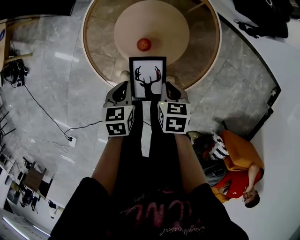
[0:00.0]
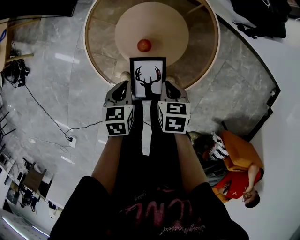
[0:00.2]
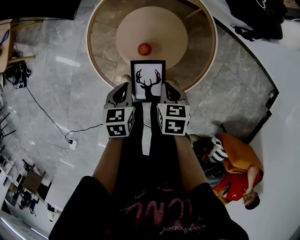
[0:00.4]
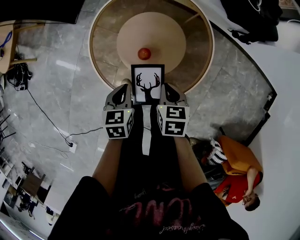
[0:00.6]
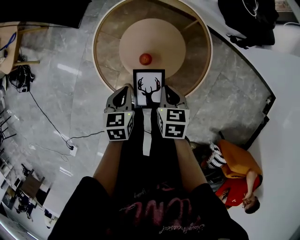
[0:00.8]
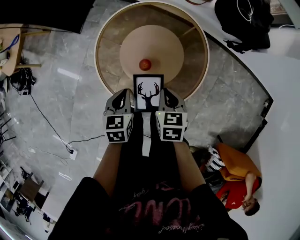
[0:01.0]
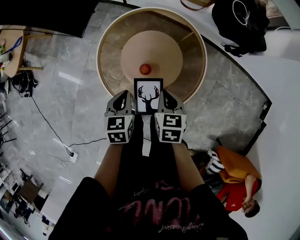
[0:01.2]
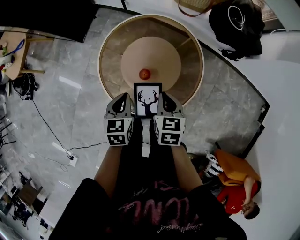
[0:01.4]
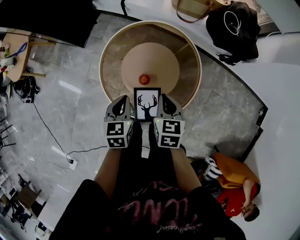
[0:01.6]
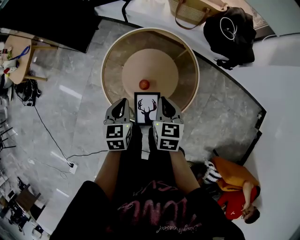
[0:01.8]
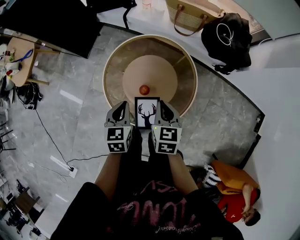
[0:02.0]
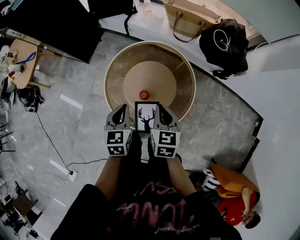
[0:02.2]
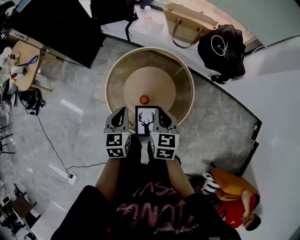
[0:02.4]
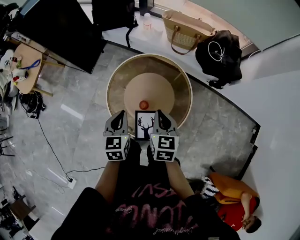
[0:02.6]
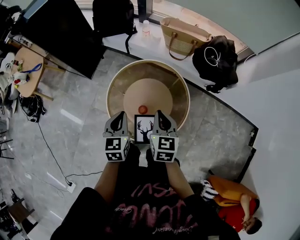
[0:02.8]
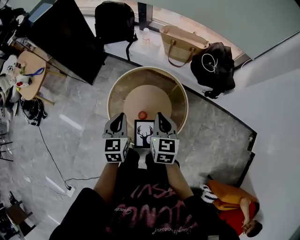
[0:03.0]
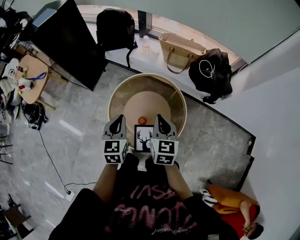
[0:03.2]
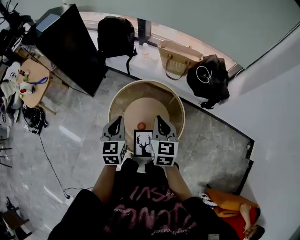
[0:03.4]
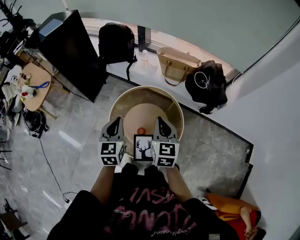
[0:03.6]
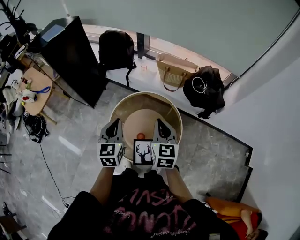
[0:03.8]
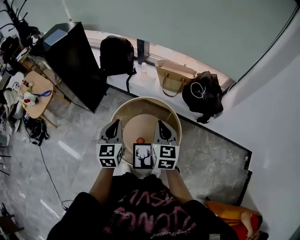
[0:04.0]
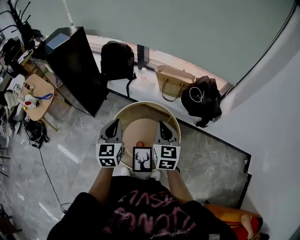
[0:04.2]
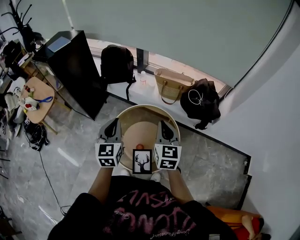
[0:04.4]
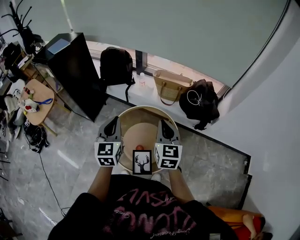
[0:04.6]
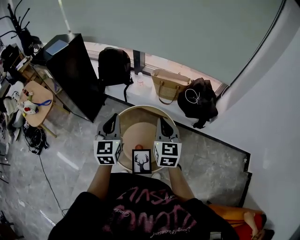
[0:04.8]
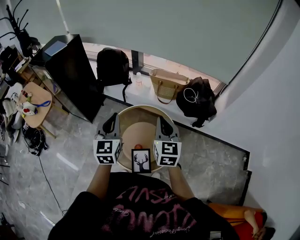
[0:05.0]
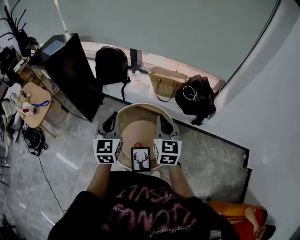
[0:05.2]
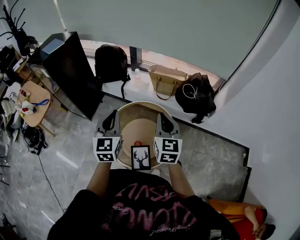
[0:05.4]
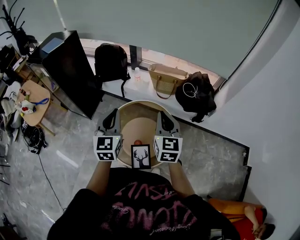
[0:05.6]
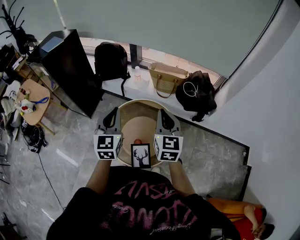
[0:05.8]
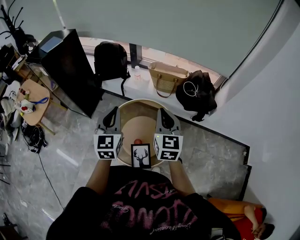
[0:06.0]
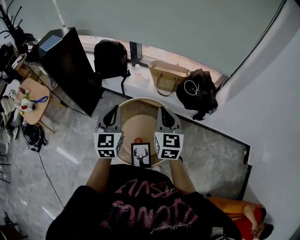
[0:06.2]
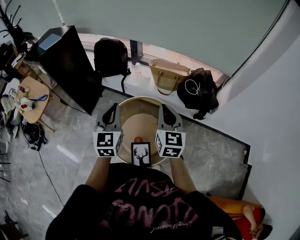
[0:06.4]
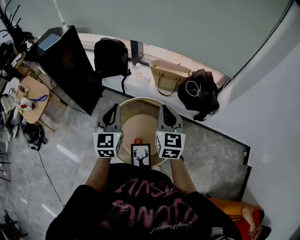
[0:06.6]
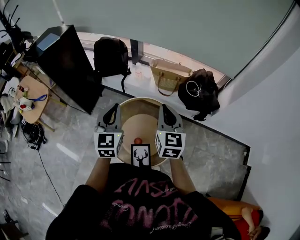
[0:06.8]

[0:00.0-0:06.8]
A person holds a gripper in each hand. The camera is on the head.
0:00.0 to 0:01.4: Both grippers travel together upward and forward, roughly 15 cm.
0:01.4 to 0:02.8: Both grippers travel together upward, some 15 cm.
0:02.8 to 0:04.0: The two grippers go approximately 15 cm upward.
0:04.0 to 0:05.4: The two grippers go roughly 5 cm upward.
0:05.4 to 0:06.8: The grippers both shift forward by roughly 5 cm.

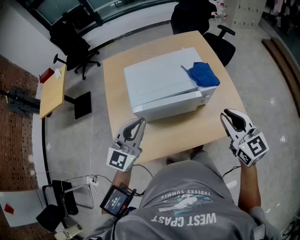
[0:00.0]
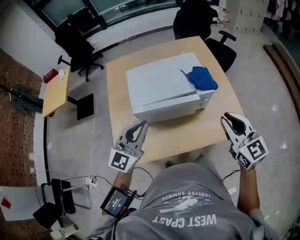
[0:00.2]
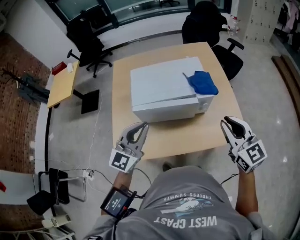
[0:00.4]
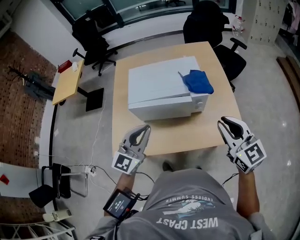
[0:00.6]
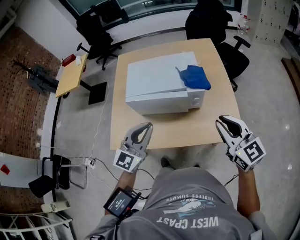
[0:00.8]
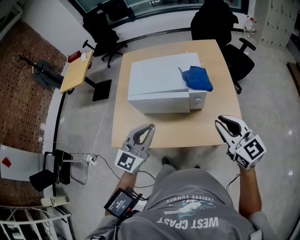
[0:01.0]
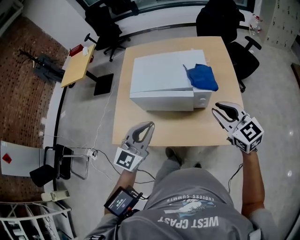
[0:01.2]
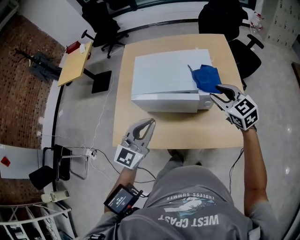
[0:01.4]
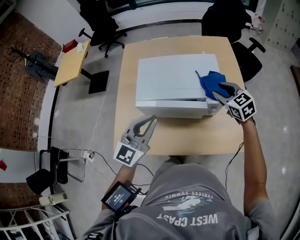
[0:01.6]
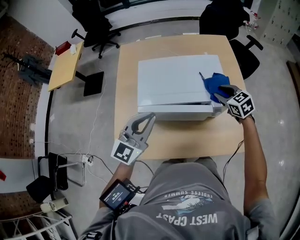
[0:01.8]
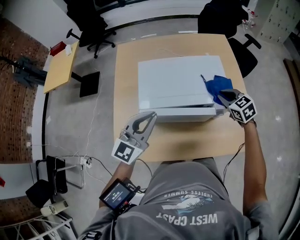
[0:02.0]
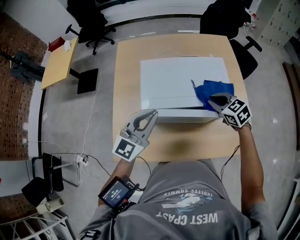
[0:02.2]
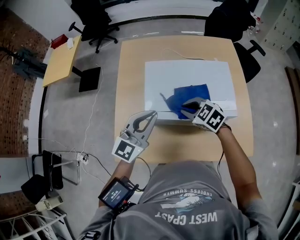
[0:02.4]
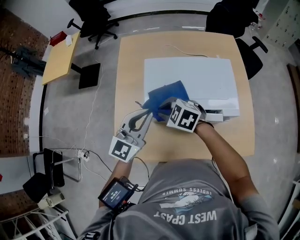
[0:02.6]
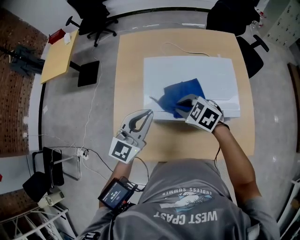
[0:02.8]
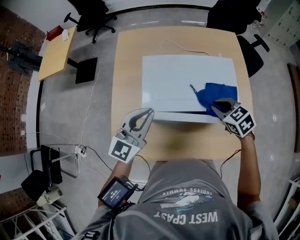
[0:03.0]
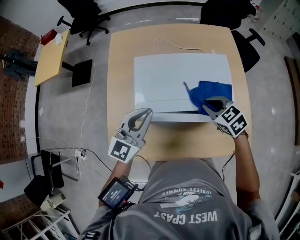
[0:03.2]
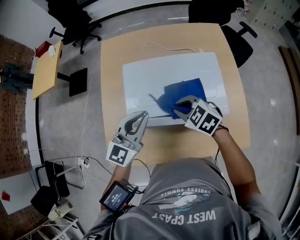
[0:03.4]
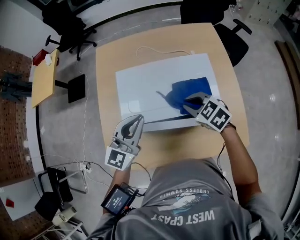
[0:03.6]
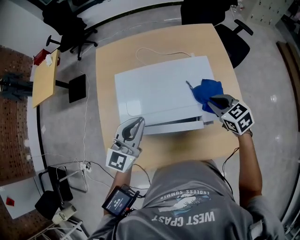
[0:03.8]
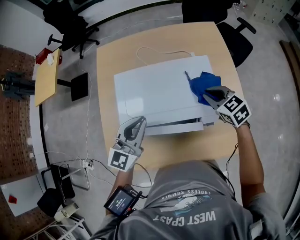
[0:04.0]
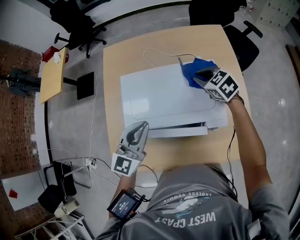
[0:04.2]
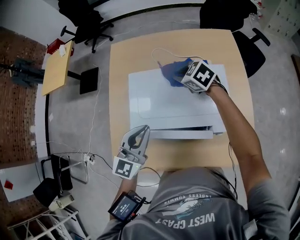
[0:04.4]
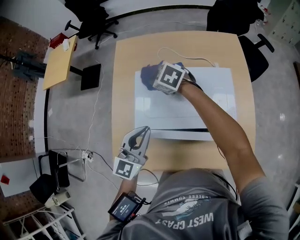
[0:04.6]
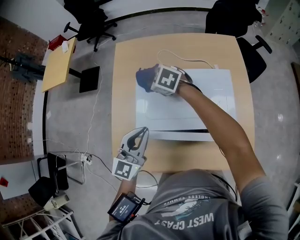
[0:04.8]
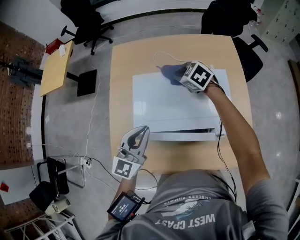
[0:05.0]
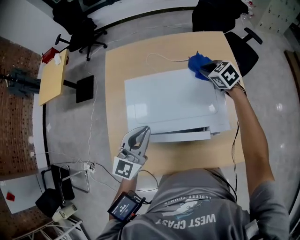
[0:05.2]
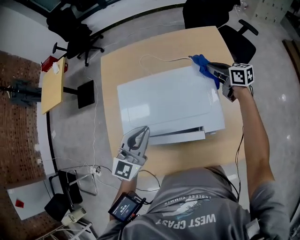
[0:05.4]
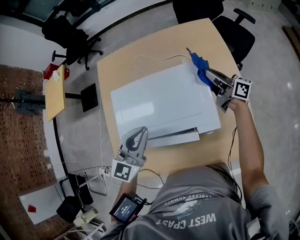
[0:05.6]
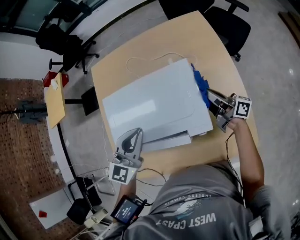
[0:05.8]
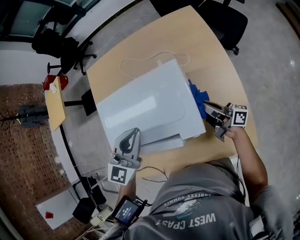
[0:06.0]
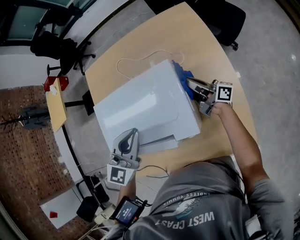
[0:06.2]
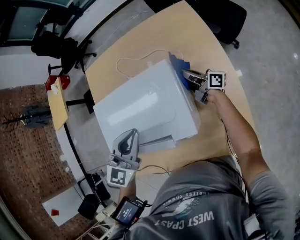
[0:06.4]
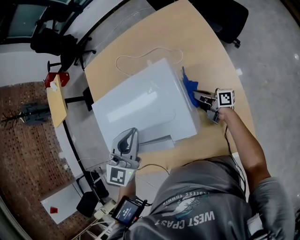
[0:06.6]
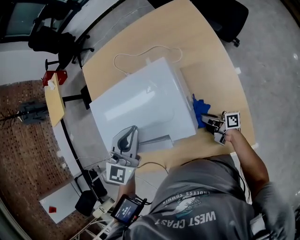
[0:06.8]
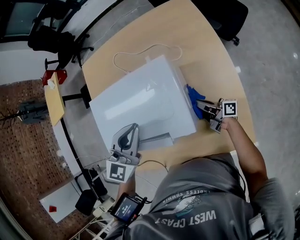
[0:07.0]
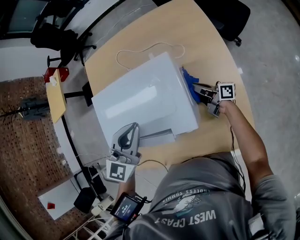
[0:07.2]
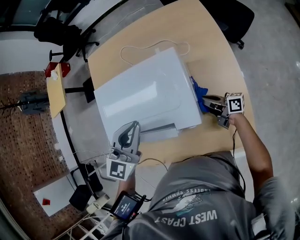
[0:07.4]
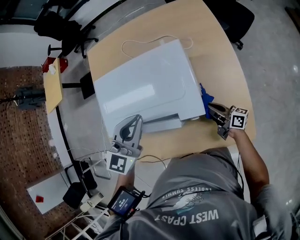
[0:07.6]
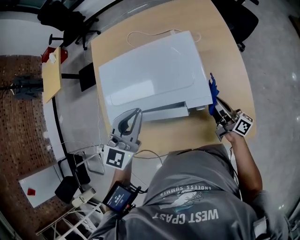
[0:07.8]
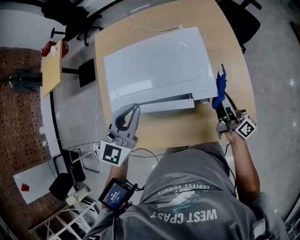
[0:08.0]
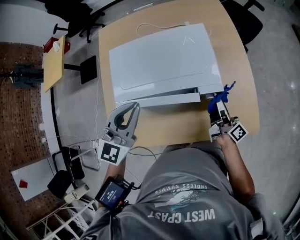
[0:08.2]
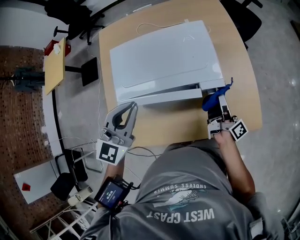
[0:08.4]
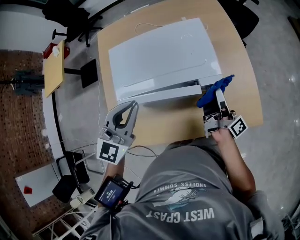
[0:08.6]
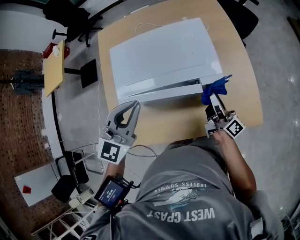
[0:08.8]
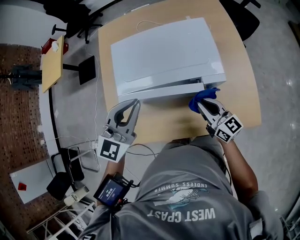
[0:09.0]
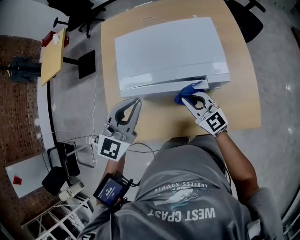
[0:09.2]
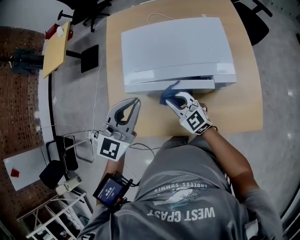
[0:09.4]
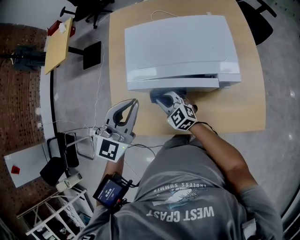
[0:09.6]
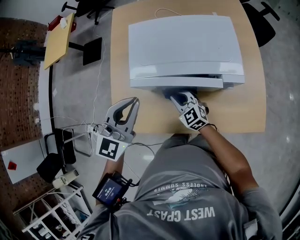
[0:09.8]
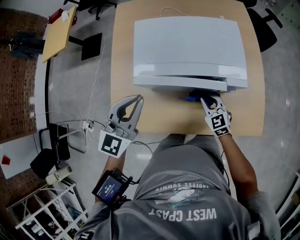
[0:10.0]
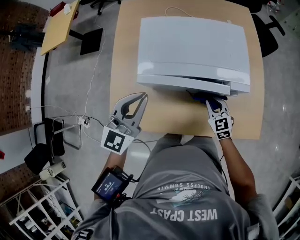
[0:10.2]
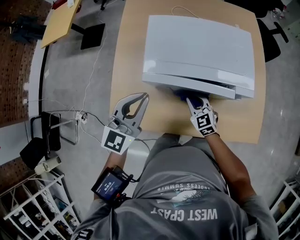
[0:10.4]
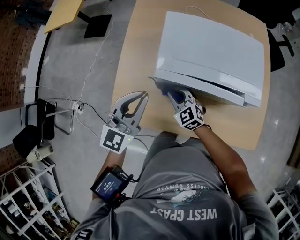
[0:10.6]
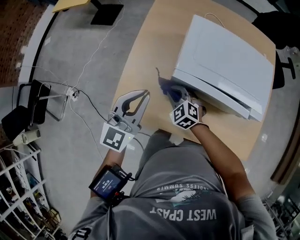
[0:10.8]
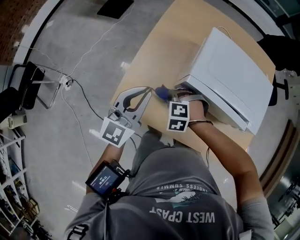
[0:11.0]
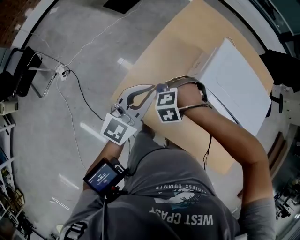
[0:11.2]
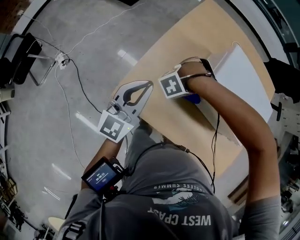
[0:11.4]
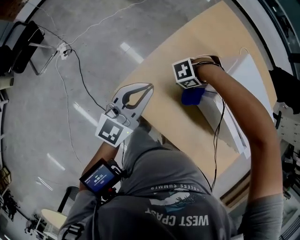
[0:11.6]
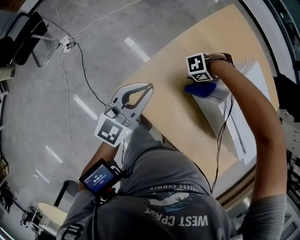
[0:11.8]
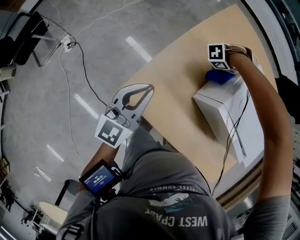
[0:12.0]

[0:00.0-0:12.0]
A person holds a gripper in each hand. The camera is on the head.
0:00.0 to 0:01.6: The left gripper goes about 5 cm to the right, while the right gripper shifts roughly 25 cm forward and downward, and changes its angle by about 30 degrees.
0:01.6 to 0:03.0: The left gripper travels forward and to the left by approximately 15 cm; the right gripper goes some 5 cm downward, travels to the left and back again, about 35 cm each way, and closes its fingers.
0:03.0 to 0:04.4: The right gripper goes left and right, roughly 20 cm each way, reversing 2 times. Meanwhile the left gripper moves to the right, approximately 5 cm.
0:04.4 to 0:06.0: The right gripper shifts roughly 30 cm to the right and backward, and tilts its fingers roughly 60 degrees upward, while the left gripper moves to the right, about 15 cm.
0:06.0 to 0:07.6: The right gripper swings forward and backward, approximately 25 cm each way, with 3 reversals.
0:07.6 to 0:09.0: The right gripper goes some 20 cm to the left, upward and backward, and rotates about 40 degrees. Meanwhile the left gripper moves backward and to the left, about 15 cm.
0:09.0 to 0:10.4: The right gripper moves left and right over some 25 cm, changing direction 2 times, and points its fingers some 30 degrees further downward, while the left gripper heads to the left and downward, covering about 10 cm.
0:10.4 to 0:12.0: The left gripper ends up about 25 cm from where it was, and changes its angle by some 40 degrees, while the right gripper changes place by approximately 30 cm, and turns by some 120 degrees.

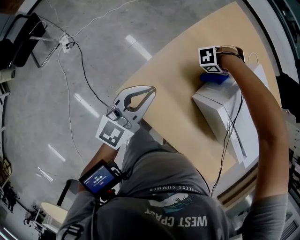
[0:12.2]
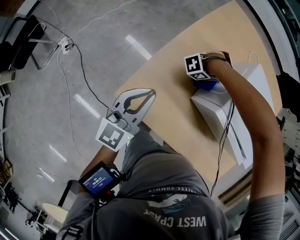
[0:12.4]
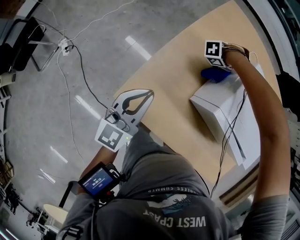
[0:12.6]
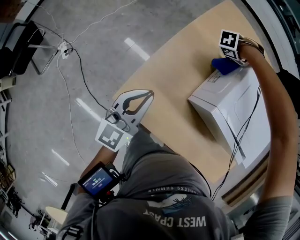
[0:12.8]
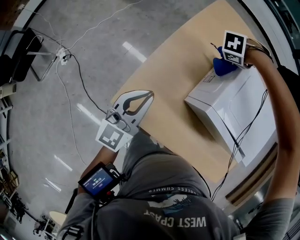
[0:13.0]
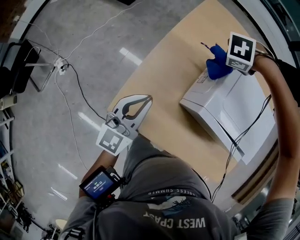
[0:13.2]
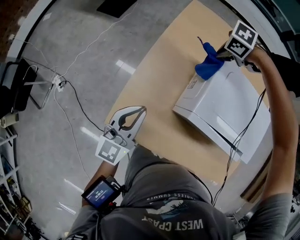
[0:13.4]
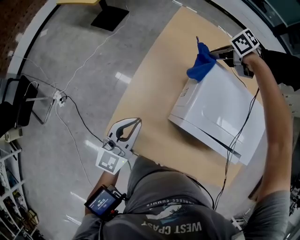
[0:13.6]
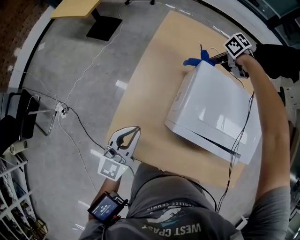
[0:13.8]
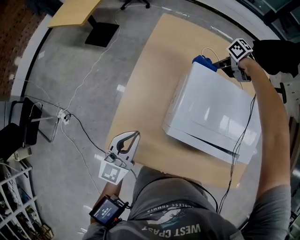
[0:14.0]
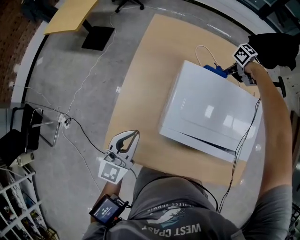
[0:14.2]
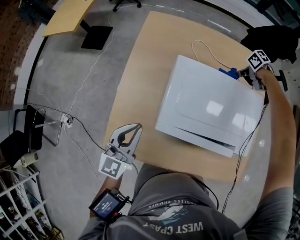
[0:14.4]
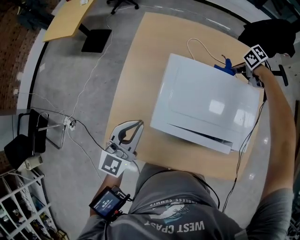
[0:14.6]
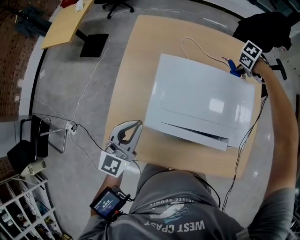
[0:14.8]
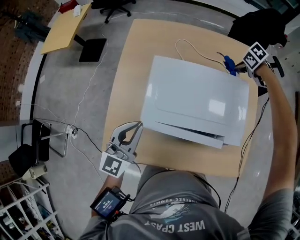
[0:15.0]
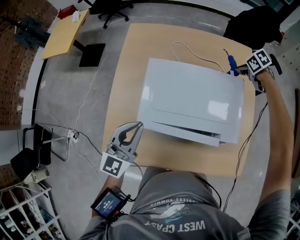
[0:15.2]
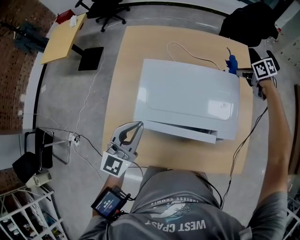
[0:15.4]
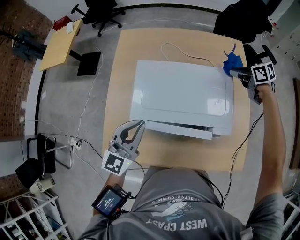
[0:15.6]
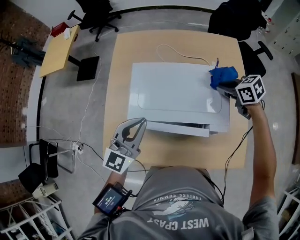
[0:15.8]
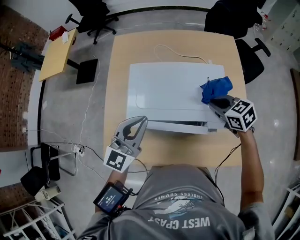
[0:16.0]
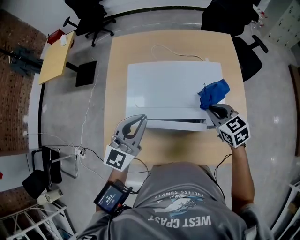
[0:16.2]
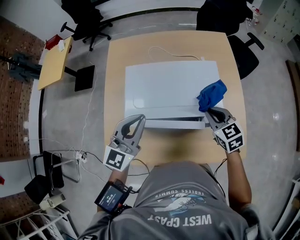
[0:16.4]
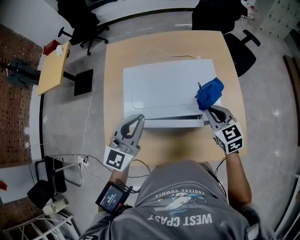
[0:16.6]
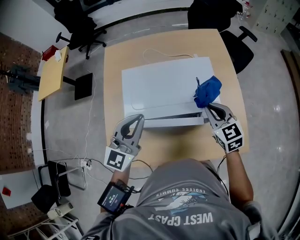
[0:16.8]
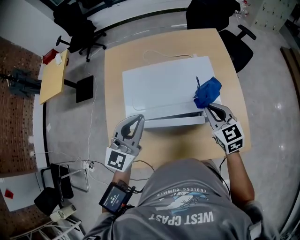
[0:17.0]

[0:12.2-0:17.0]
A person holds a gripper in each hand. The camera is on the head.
0:12.2 to 0:13.8: The left gripper shifts by some 10 cm, while the right gripper changes place by about 25 cm, and changes its angle by roughly 100 degrees.
0:13.8 to 0:15.4: The right gripper shifts by approximately 40 cm, and turns by approximately 30 degrees; the left gripper ends up some 20 cm from where it was.
0:15.4 to 0:17.0: The right gripper ends up roughly 30 cm from where it was, and rotates some 40 degrees; the left gripper moves roughly 10 cm.
